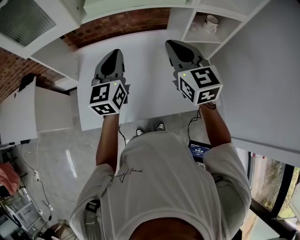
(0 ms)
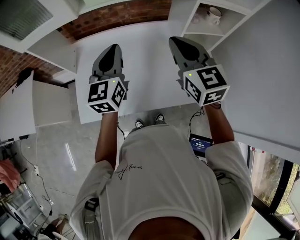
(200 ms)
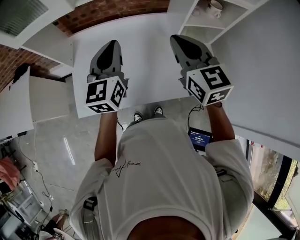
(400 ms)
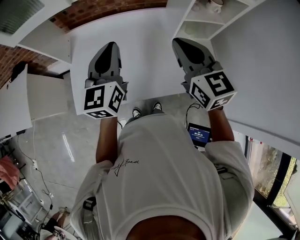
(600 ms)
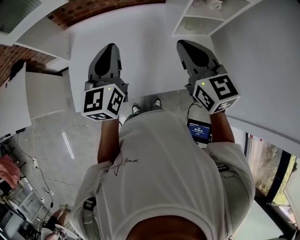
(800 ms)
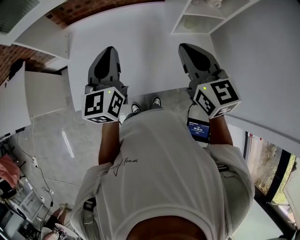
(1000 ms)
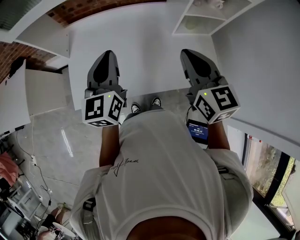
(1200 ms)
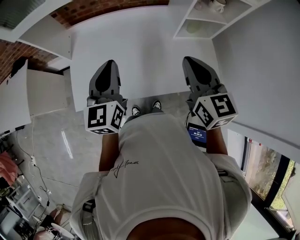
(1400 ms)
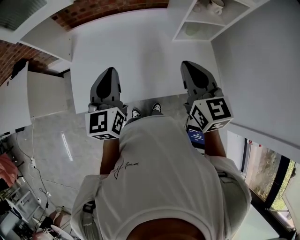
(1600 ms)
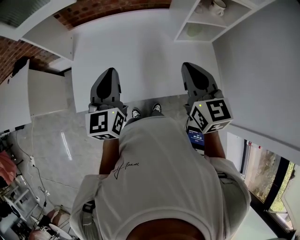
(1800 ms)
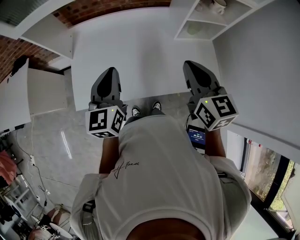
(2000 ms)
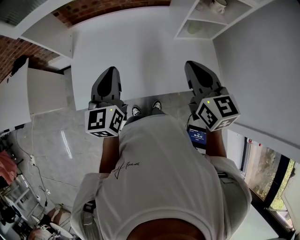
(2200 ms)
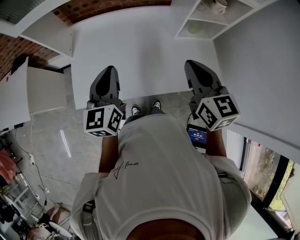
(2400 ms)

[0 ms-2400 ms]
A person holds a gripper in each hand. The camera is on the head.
0 ms to 1200 ms: The left gripper heads backward, covering about 10 cm. Meanwhile the right gripper heads backward and downward, covering about 10 cm.
1200 ms to 2400 ms: The grippers move only a little.

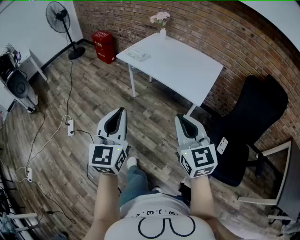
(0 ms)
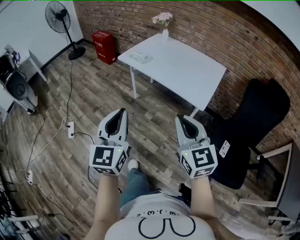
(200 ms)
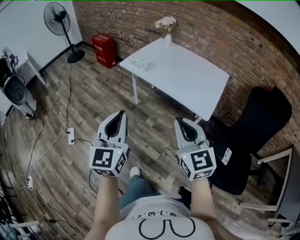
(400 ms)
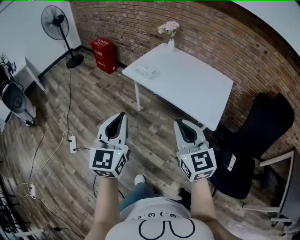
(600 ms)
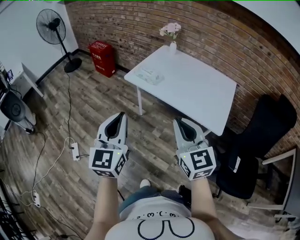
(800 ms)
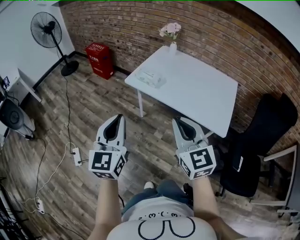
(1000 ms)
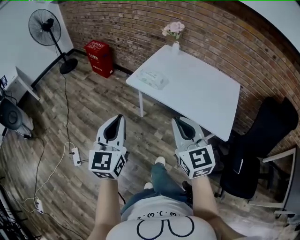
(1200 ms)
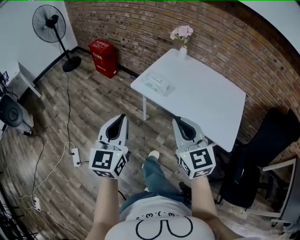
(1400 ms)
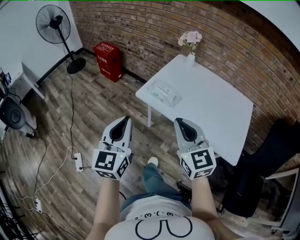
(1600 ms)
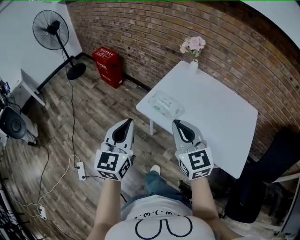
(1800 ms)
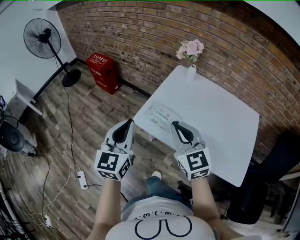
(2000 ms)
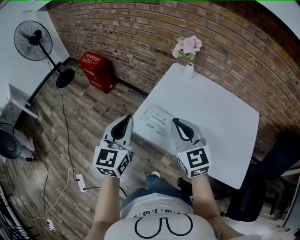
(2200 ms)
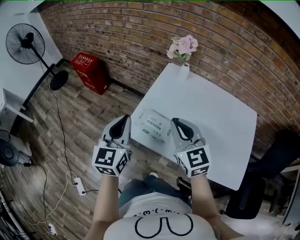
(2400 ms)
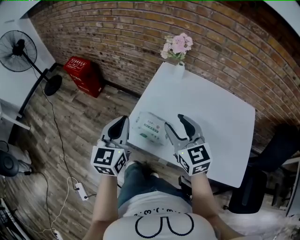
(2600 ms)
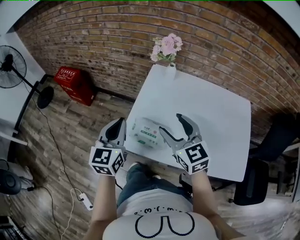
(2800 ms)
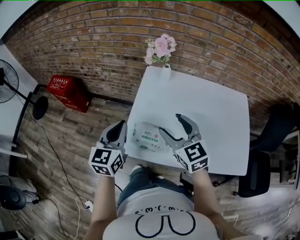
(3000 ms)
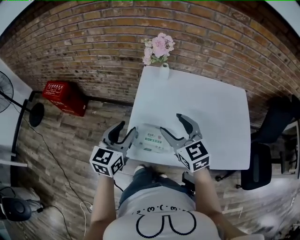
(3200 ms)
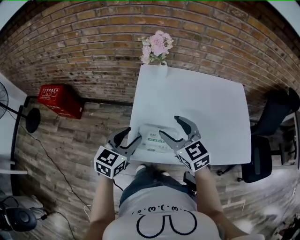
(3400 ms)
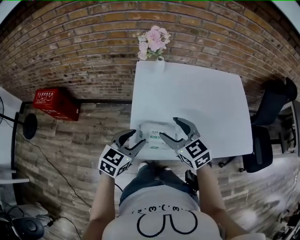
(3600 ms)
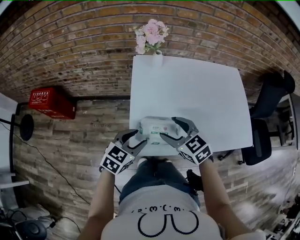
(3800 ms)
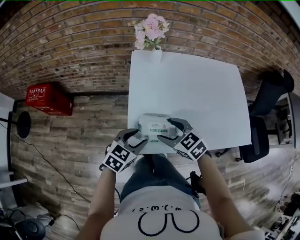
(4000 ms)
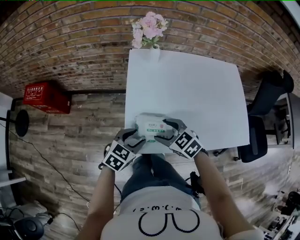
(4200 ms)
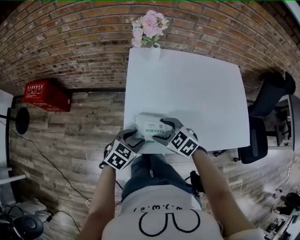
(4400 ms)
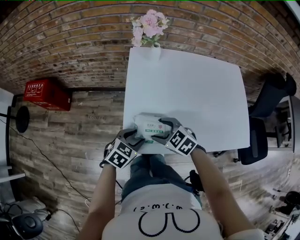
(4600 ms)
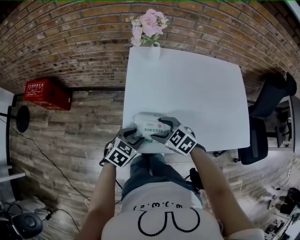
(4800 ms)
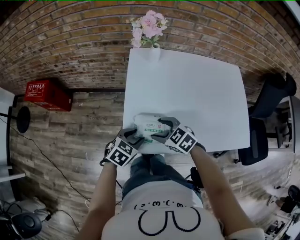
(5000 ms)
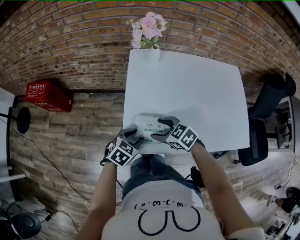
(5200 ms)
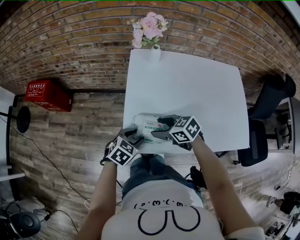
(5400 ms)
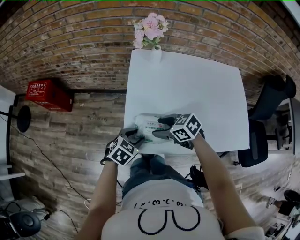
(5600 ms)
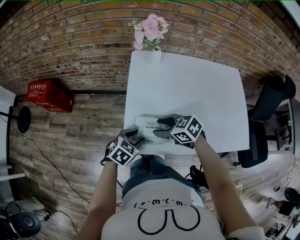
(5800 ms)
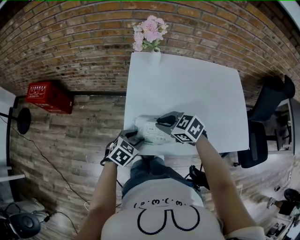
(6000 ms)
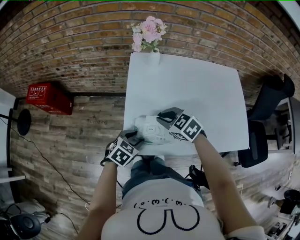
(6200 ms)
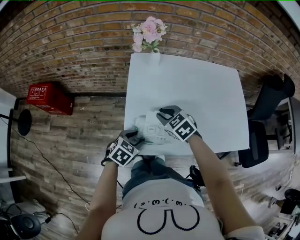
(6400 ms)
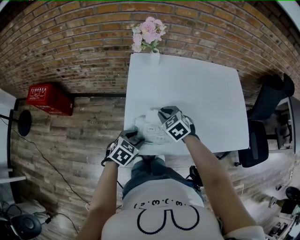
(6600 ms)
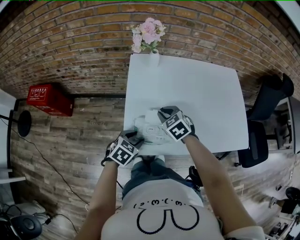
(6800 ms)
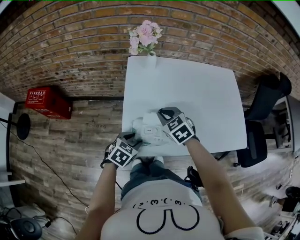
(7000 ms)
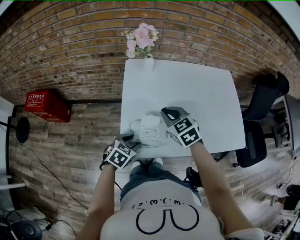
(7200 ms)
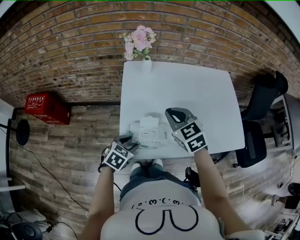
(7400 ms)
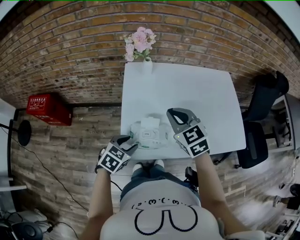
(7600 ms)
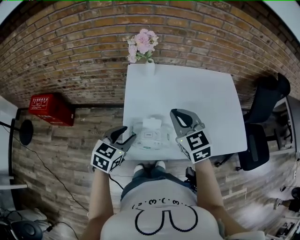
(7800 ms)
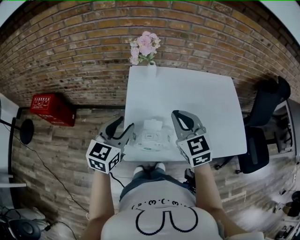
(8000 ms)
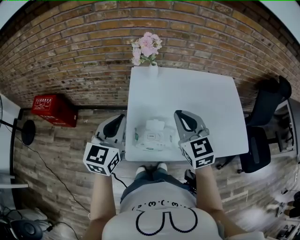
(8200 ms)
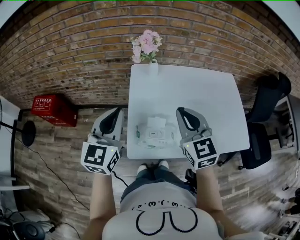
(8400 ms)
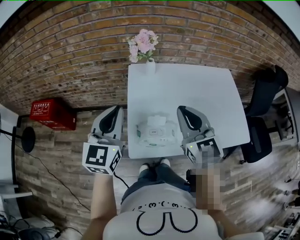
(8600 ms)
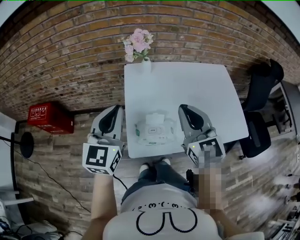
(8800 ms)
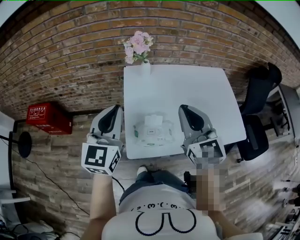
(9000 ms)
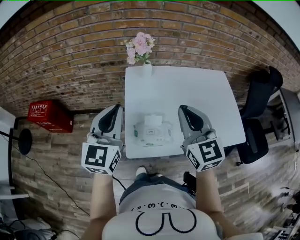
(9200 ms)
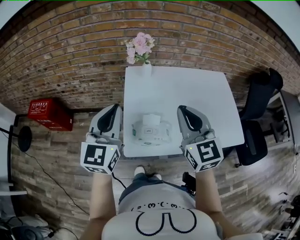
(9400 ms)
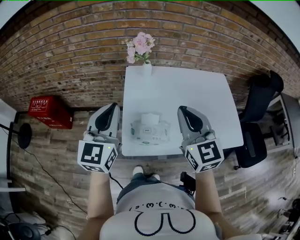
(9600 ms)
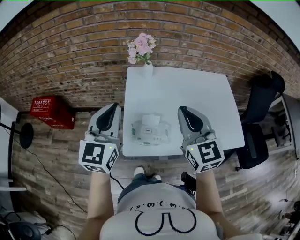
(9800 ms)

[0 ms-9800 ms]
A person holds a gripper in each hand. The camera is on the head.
0 ms to 1400 ms: The two grippers go roughly 40 cm forward and to the left.
1400 ms to 2800 ms: Both grippers move forward, about 40 cm. The right gripper opens.
2800 ms to 4200 ms: Both grippers move downward, about 20 cm. The right gripper swivels some 30 degrees. The left gripper swivels approximately 60 degrees, and opens up.
4200 ms to 5600 ms: The right gripper turns by roughly 20 degrees.
5600 ms to 7000 ms: The right gripper ends up some 10 cm from where it was, rotates some 40 degrees, and closes its fingers.
7000 ms to 8400 ms: The two grippers go about 25 cm upward. The right gripper angles its fingers upward, by about 30 degrees, while the left gripper tips its fingers upward by about 50 degrees, and closes up.
8400 ms to 9800 ms: The right gripper is displaced upward by some 5 cm.

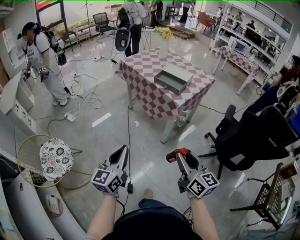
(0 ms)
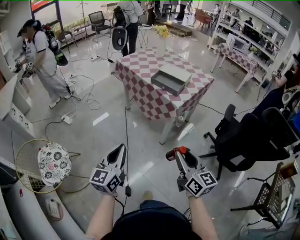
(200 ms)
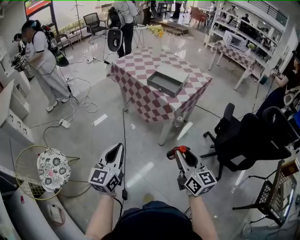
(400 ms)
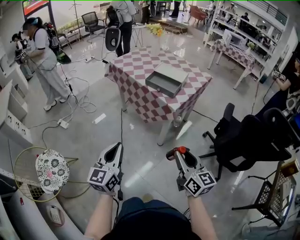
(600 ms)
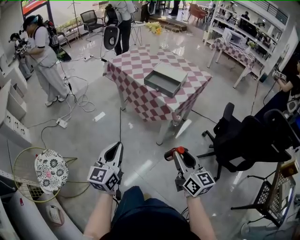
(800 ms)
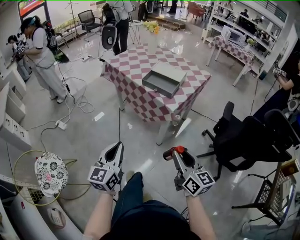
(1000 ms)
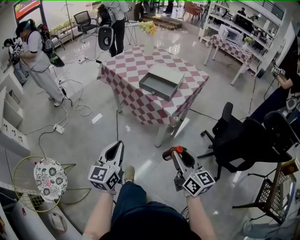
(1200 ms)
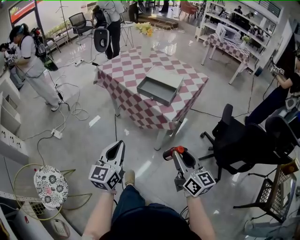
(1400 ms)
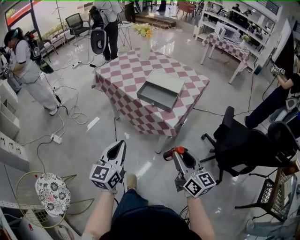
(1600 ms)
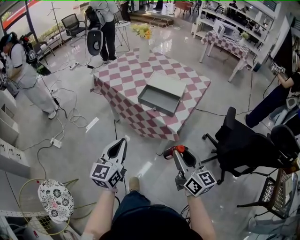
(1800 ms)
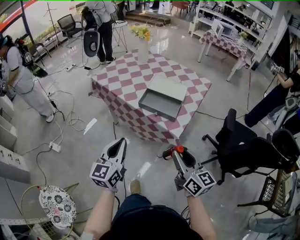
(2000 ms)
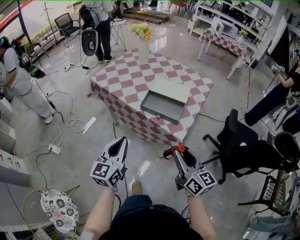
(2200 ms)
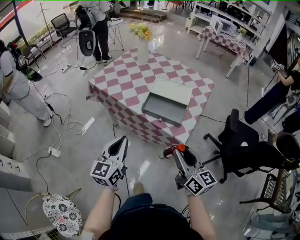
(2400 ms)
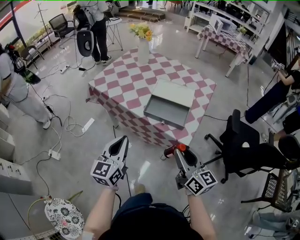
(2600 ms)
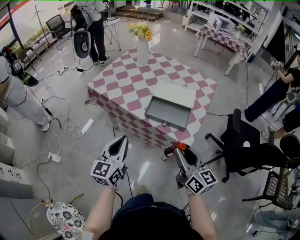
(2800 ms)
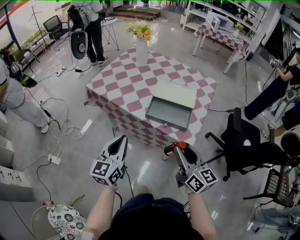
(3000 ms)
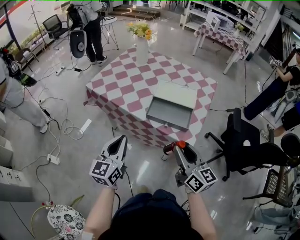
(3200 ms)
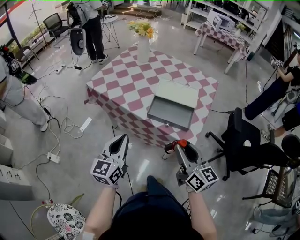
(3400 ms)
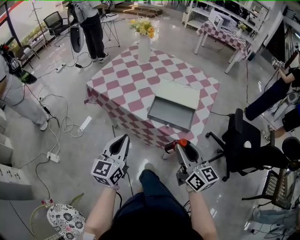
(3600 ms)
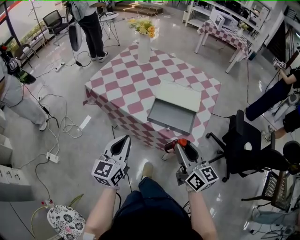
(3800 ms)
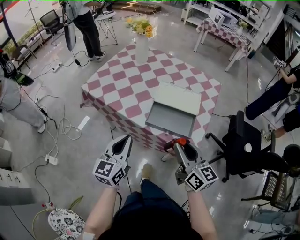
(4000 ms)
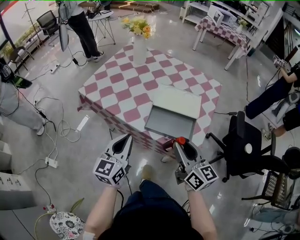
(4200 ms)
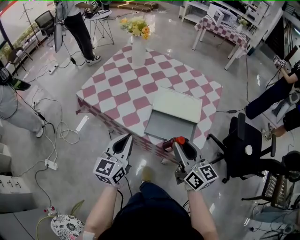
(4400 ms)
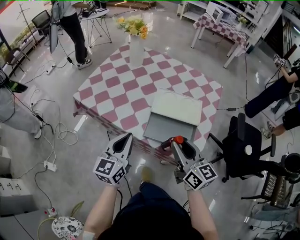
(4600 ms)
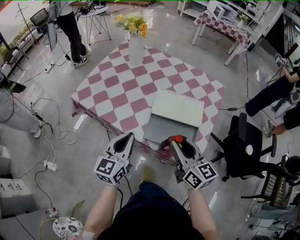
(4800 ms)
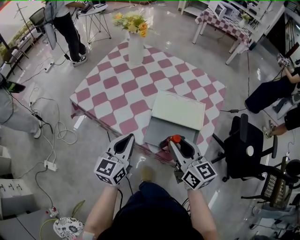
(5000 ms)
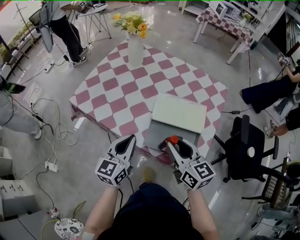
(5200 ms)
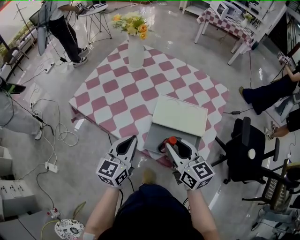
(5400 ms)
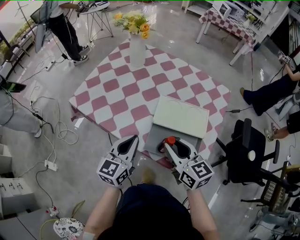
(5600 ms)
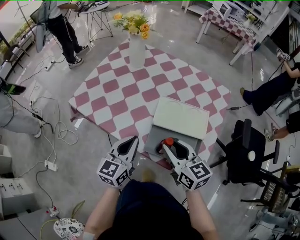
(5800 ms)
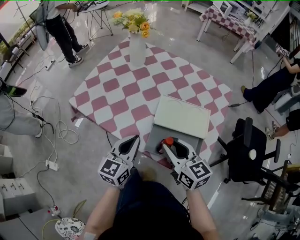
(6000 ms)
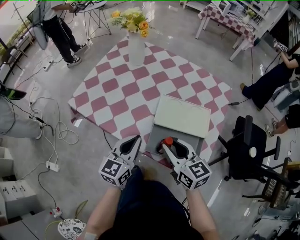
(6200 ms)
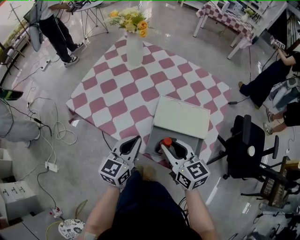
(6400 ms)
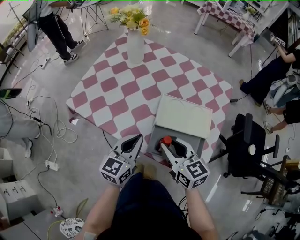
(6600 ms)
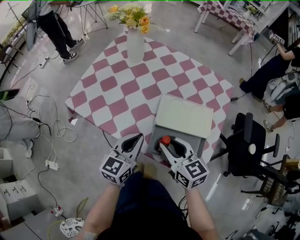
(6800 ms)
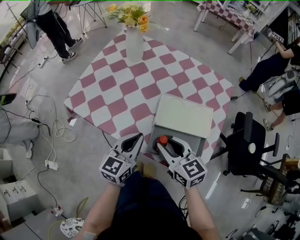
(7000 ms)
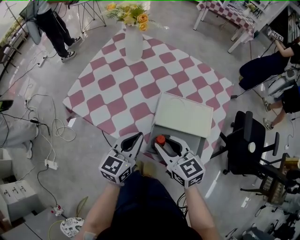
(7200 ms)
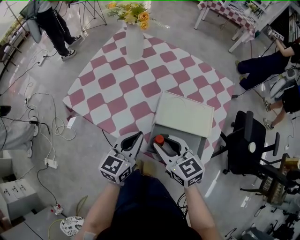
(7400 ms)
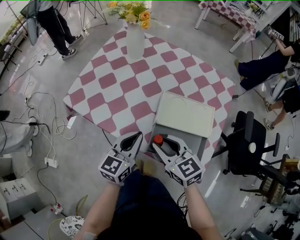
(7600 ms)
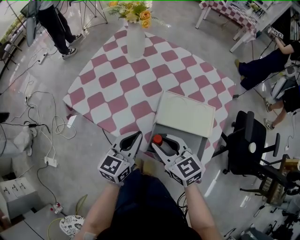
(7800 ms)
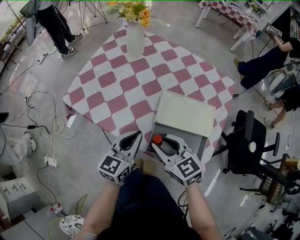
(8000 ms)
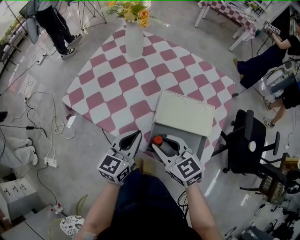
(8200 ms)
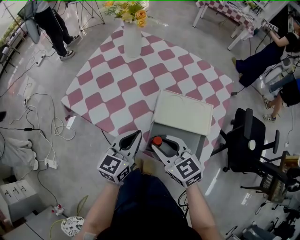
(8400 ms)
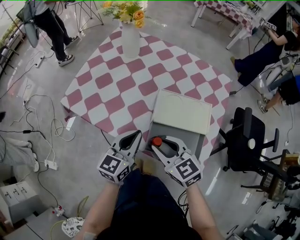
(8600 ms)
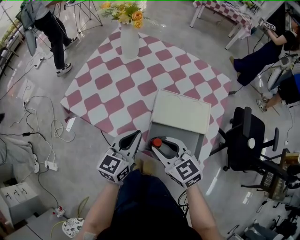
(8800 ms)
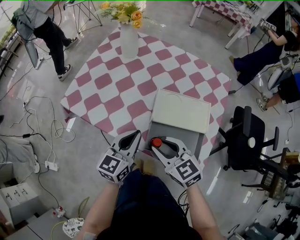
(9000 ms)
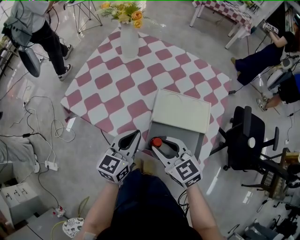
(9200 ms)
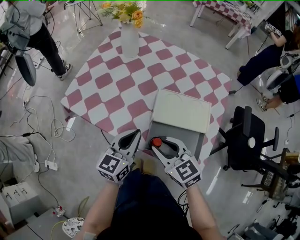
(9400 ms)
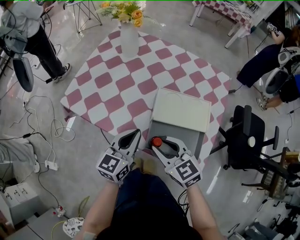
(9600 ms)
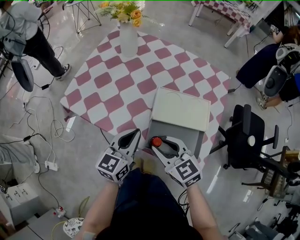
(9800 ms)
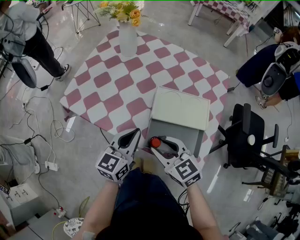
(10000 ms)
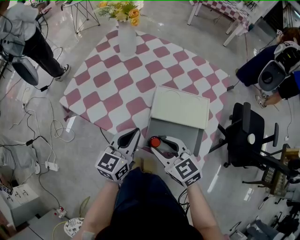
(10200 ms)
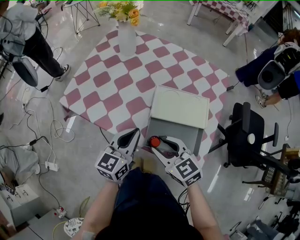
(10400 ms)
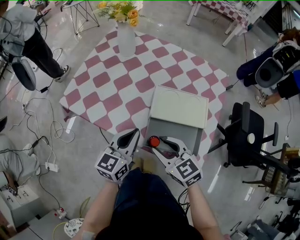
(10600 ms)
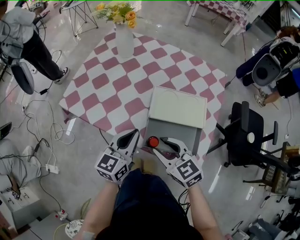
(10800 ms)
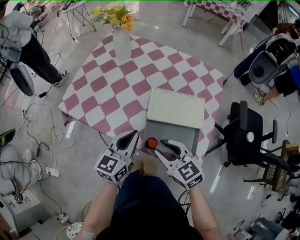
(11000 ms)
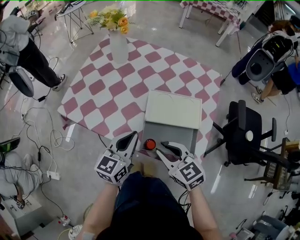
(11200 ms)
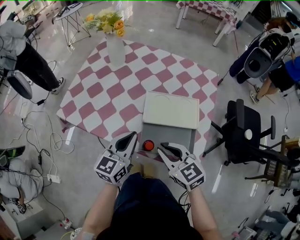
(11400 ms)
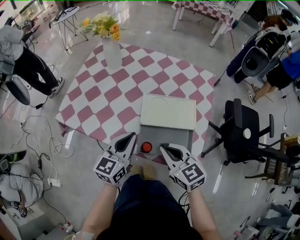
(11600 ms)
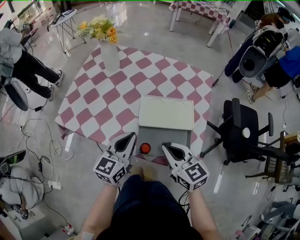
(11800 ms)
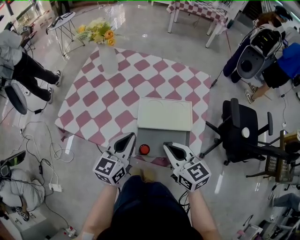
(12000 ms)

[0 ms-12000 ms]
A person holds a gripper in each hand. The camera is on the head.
0 ms to 1600 ms: Both grippers move forward, about 30 cm.
1600 ms to 3000 ms: The two grippers go about 25 cm forward and to the left.
3000 ms to 4400 ms: Both grippers travel together forward, approximately 15 cm.
4400 ms to 6000 ms: The right gripper shifts about 10 cm forward and downward, while the left gripper travels forward by approximately 10 cm.
6000 ms to 7600 ms: The right gripper goes some 5 cm to the left.
7600 ms to 10400 ms: The grippers stay close to where they were, moving slightly.
10400 ms to 12000 ms: The right gripper is displaced to the right and upward by roughly 10 cm, changes its angle by approximately 20 degrees, and closes up.
